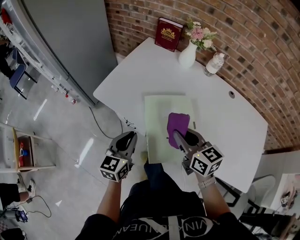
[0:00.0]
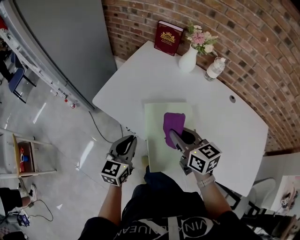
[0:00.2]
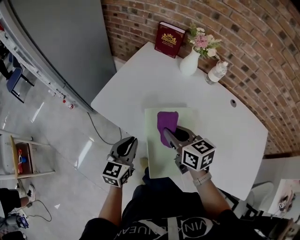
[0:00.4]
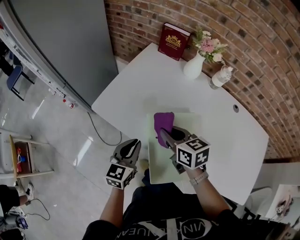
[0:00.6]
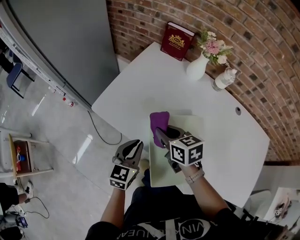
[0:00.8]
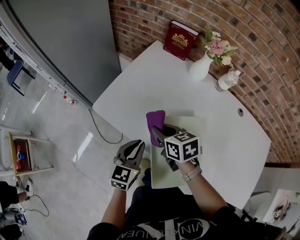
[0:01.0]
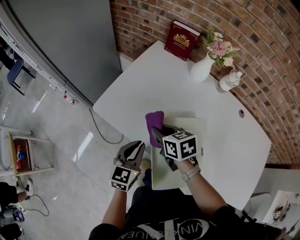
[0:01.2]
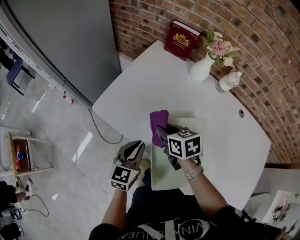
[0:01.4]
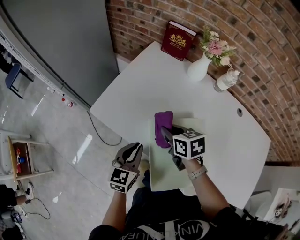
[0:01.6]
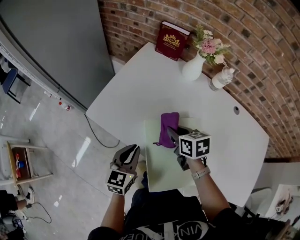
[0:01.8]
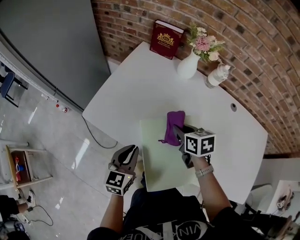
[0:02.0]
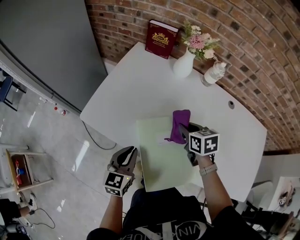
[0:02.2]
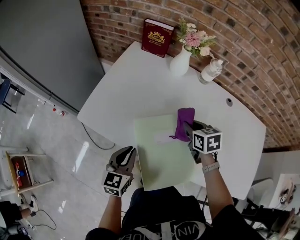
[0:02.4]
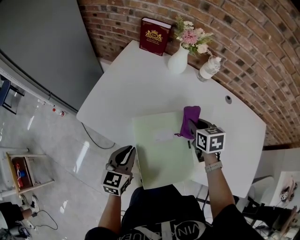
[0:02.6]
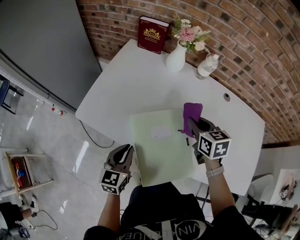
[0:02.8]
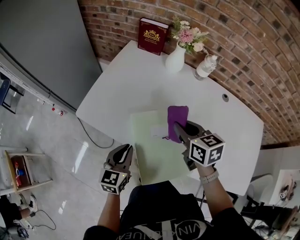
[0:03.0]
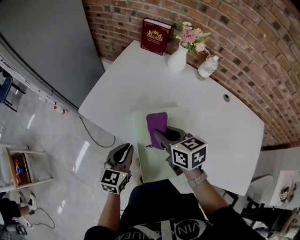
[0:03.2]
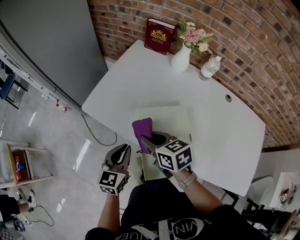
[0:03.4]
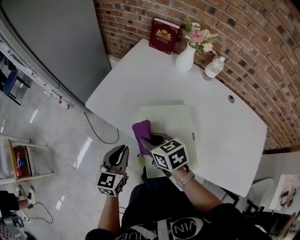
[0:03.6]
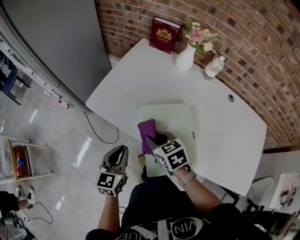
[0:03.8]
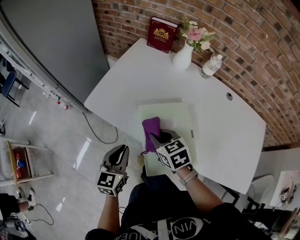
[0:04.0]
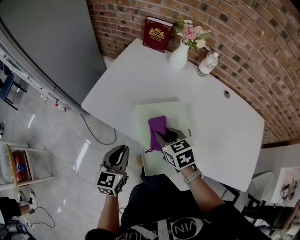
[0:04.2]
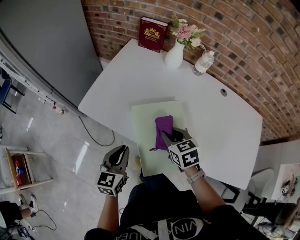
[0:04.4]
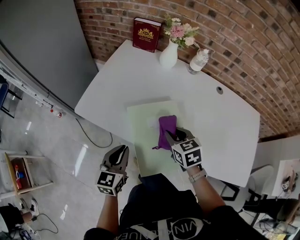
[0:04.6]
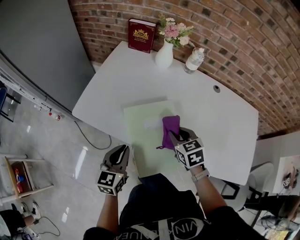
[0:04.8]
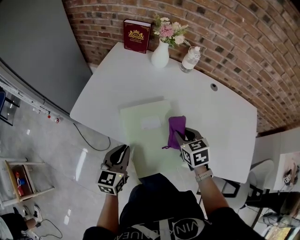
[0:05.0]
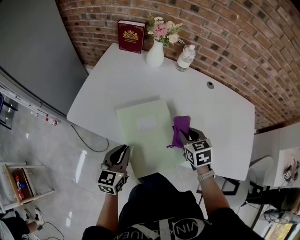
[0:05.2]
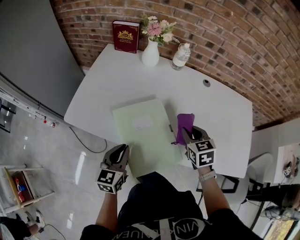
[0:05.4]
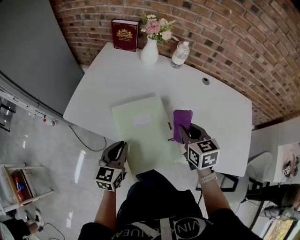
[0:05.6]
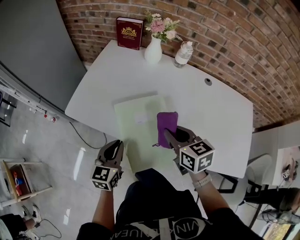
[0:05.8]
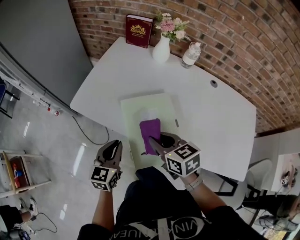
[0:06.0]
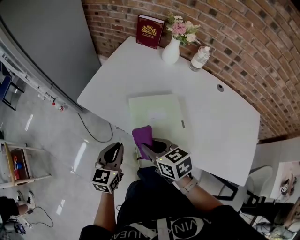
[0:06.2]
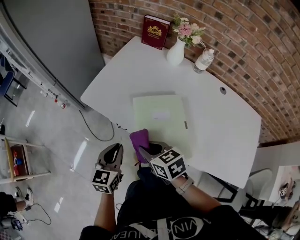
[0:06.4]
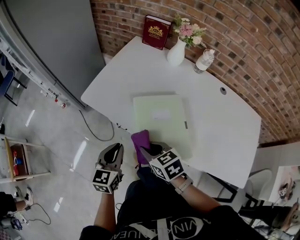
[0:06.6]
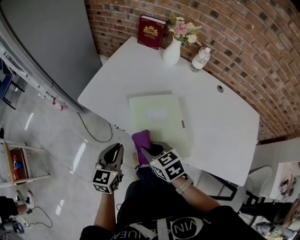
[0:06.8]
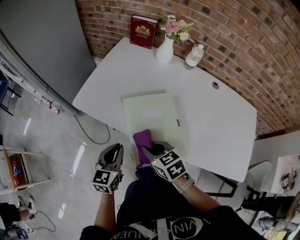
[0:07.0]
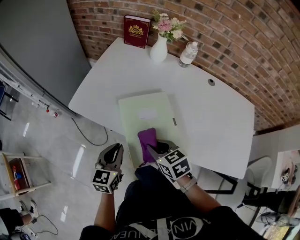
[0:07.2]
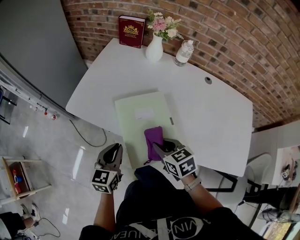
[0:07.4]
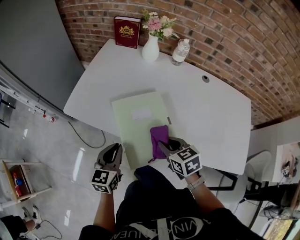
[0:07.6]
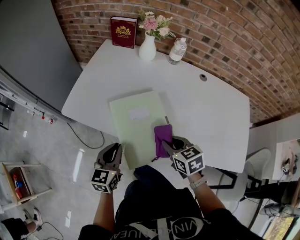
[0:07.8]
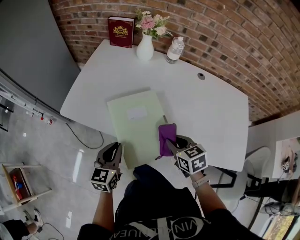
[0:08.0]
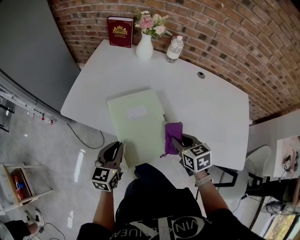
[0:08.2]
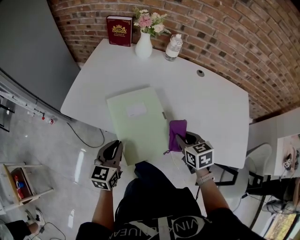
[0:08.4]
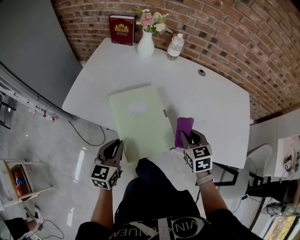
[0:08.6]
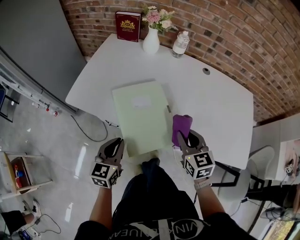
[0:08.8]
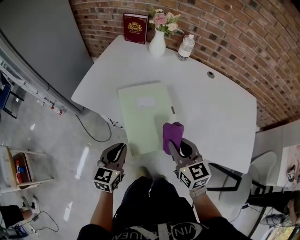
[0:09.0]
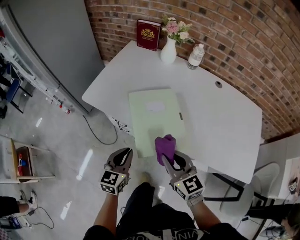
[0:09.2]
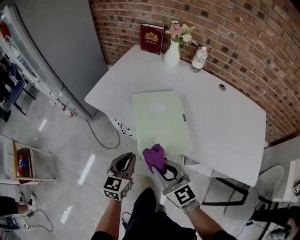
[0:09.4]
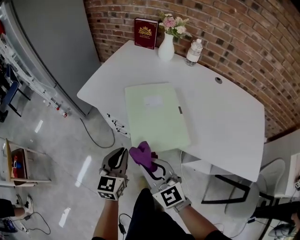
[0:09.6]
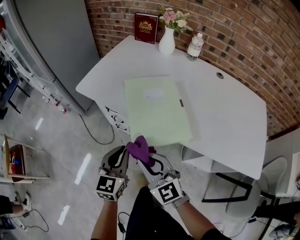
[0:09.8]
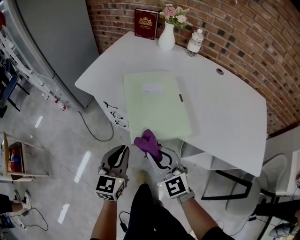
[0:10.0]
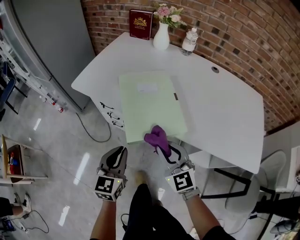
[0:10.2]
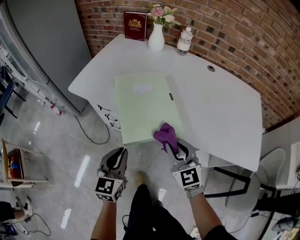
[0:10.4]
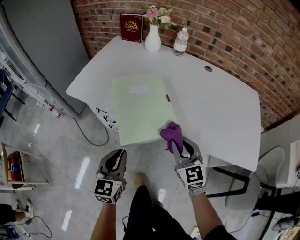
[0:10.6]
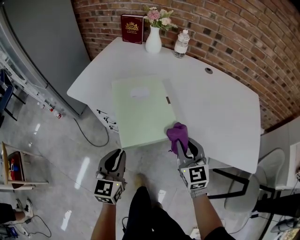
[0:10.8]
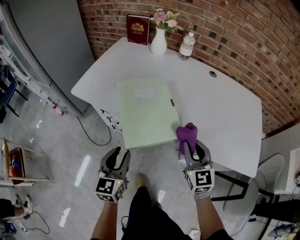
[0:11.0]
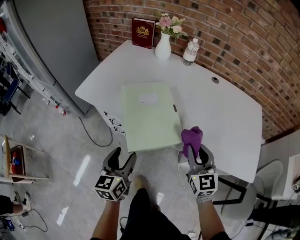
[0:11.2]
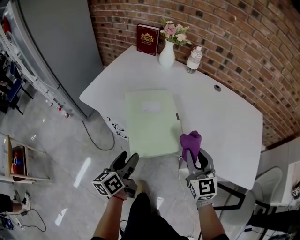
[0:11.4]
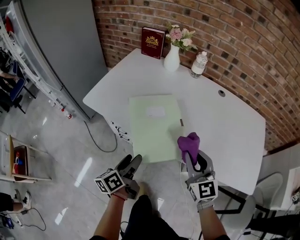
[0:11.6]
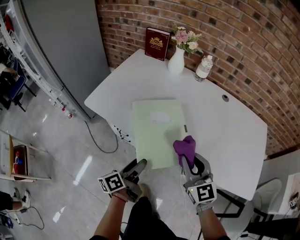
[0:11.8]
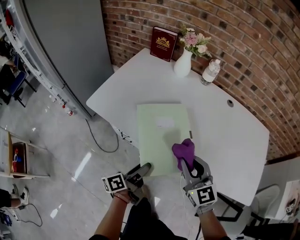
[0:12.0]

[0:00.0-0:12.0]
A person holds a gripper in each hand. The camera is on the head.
0:00.0 to 0:01.6: The left gripper heads forward, covering about 10 cm. The right gripper is displaced forward and downward by about 20 cm, and turns by about 30 degrees.
0:01.6 to 0:03.0: The right gripper shifts about 15 cm to the right and upward.
0:03.0 to 0:04.4: The left gripper ends up approximately 5 cm from where it was. Meanwhile the right gripper goes some 10 cm downward and backward, and travels to the left and back again, roughly 15 cm each way.
0:04.4 to 0:06.0: The right gripper moves backward and upward, roughly 10 cm, and travels to the right and back again, about 15 cm each way.
0:06.0 to 0:07.6: The right gripper travels to the right and downward by some 10 cm.
0:07.6 to 0:09.0: The left gripper shifts approximately 5 cm backward; the right gripper travels backward and upward by approximately 10 cm, goes to the right and returns, some 10 cm each way, and rotates roughly 20 degrees.
0:09.0 to 0:10.4: The left gripper moves backward, about 5 cm, while the right gripper moves downward, some 10 cm, and moves some 15 cm to the left and comes back.
0:10.4 to 0:12.0: The right gripper goes roughly 10 cm forward and upward, and moves approximately 10 cm to the right and comes back, while the left gripper moves forward, approximately 10 cm, rotates around the line of its fingers by approximately 70 degrees, counterclockwise from behind, and opens up.

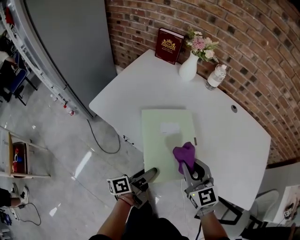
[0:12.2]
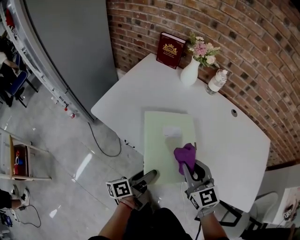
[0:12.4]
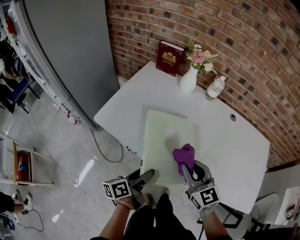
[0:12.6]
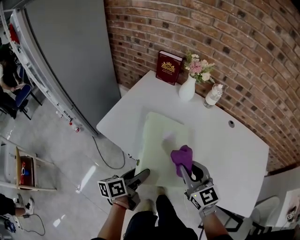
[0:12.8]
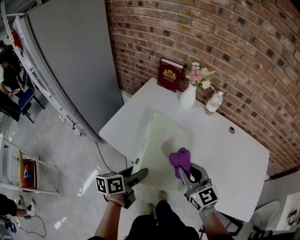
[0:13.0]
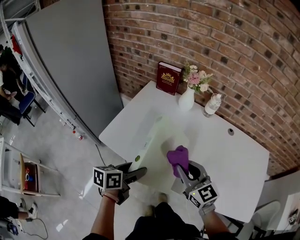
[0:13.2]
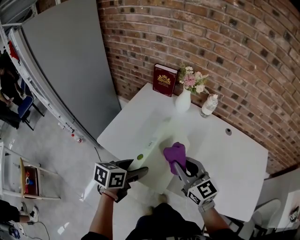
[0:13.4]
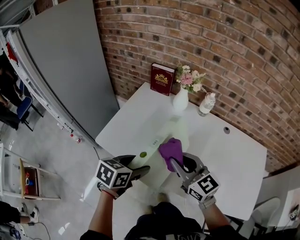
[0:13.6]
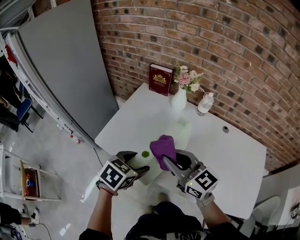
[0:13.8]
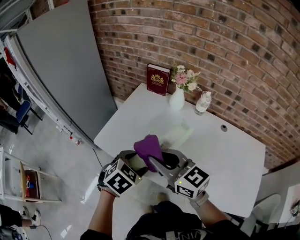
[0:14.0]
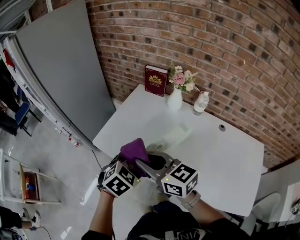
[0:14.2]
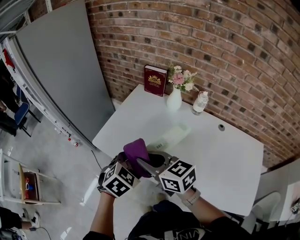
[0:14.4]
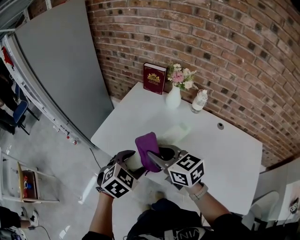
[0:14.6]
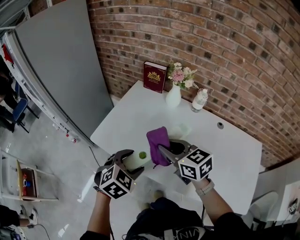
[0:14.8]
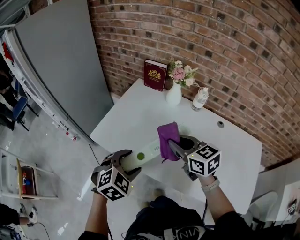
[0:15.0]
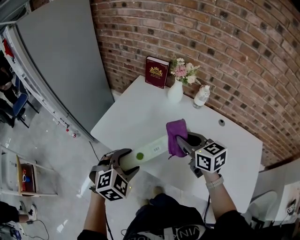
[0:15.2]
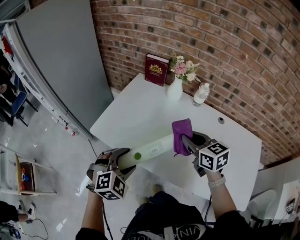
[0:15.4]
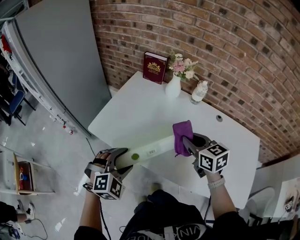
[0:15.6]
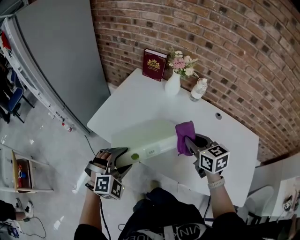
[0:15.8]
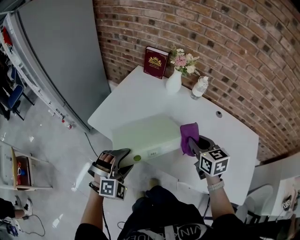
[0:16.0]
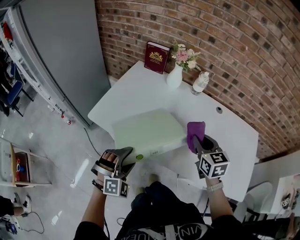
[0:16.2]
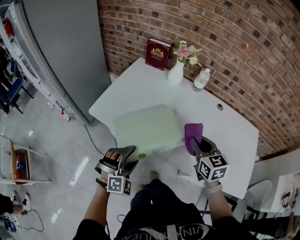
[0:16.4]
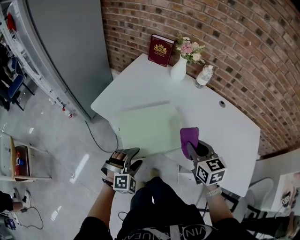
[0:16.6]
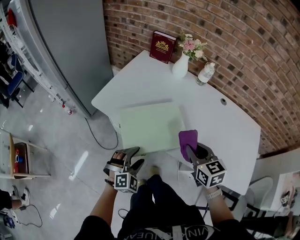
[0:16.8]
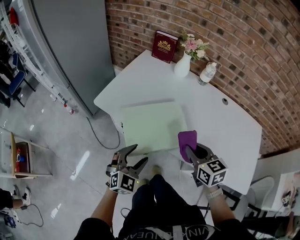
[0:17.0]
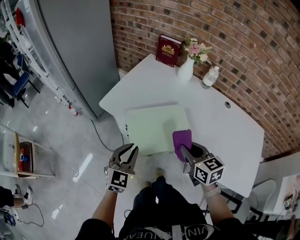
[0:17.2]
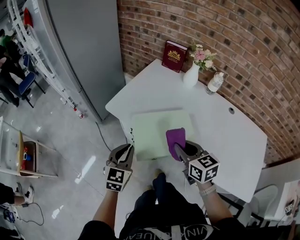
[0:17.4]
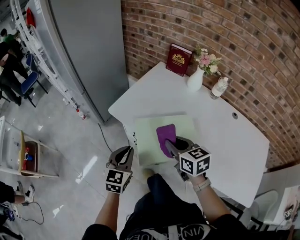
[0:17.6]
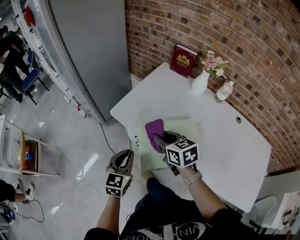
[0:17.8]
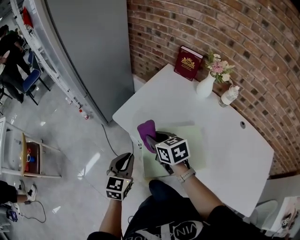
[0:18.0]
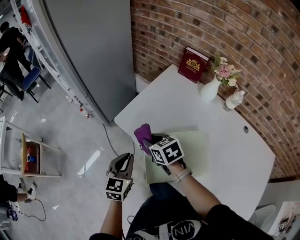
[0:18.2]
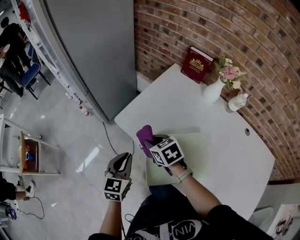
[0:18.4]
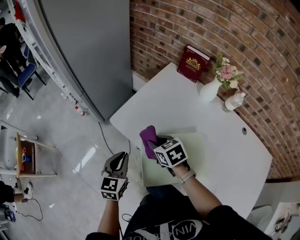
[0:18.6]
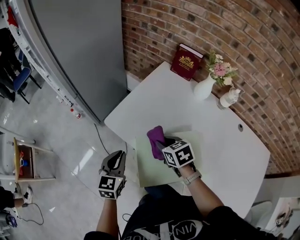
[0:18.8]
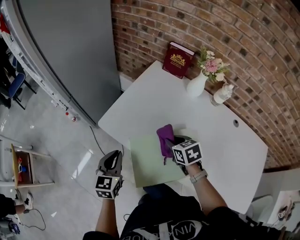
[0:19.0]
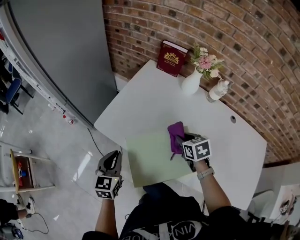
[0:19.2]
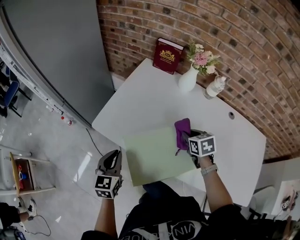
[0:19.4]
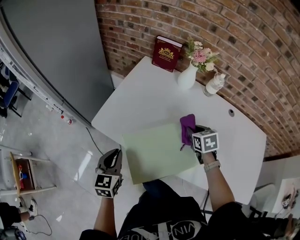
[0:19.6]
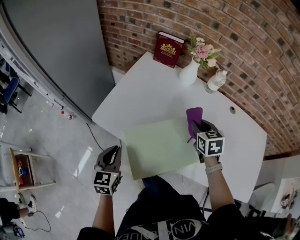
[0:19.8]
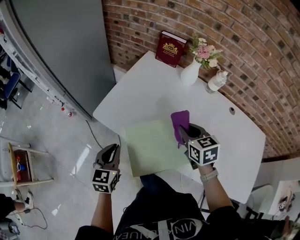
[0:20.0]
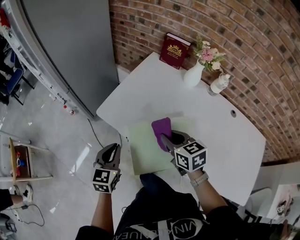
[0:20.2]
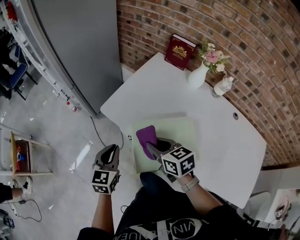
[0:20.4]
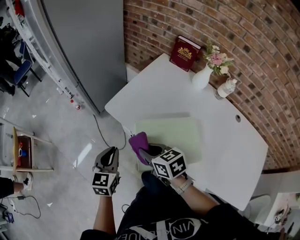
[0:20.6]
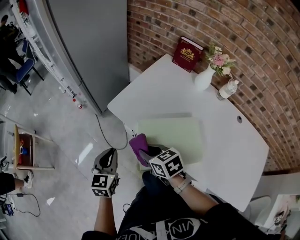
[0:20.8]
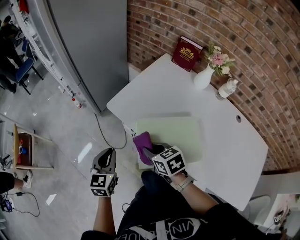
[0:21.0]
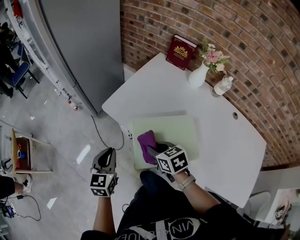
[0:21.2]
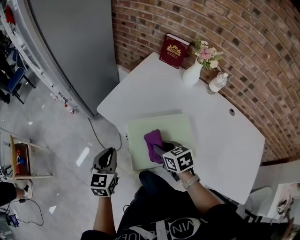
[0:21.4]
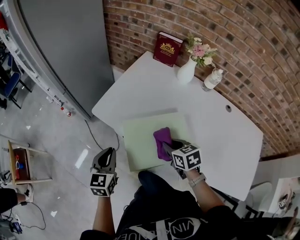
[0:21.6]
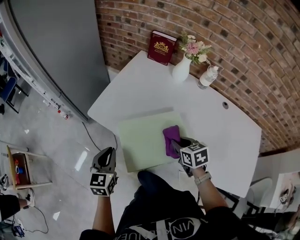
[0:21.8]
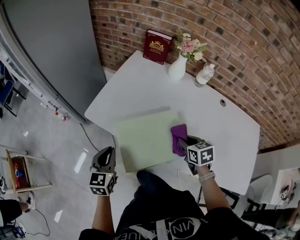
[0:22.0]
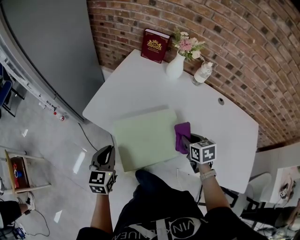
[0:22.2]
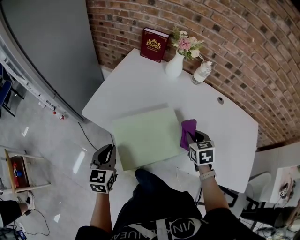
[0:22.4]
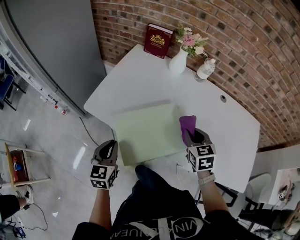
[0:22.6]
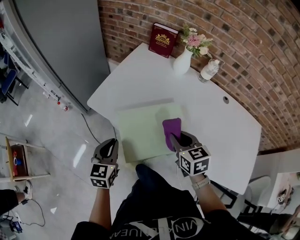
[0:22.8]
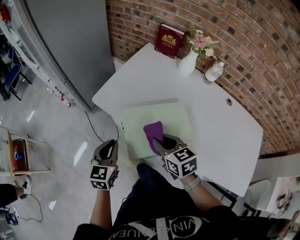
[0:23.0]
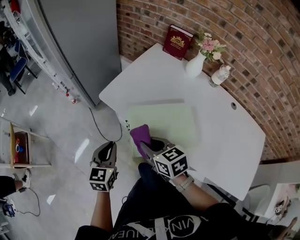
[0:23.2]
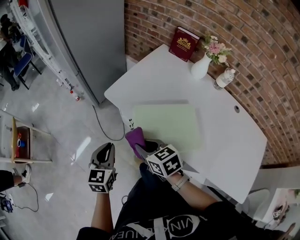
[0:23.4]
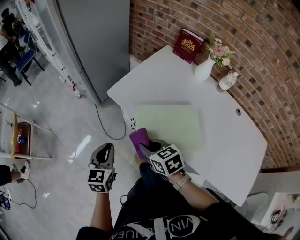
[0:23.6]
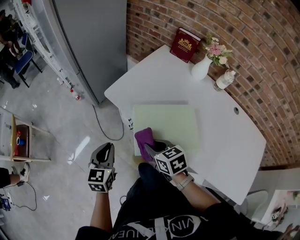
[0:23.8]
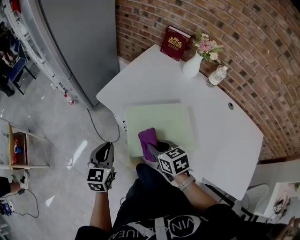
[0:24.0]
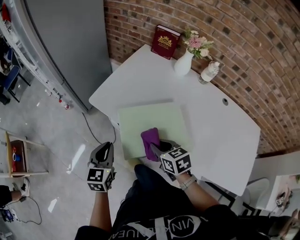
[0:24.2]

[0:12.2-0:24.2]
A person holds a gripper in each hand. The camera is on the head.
0:12.2 to 0:13.8: The left gripper goes approximately 20 cm upward and forward, and twists roughly 70 degrees clockwise, seen from behind. Meanwhile the right gripper heads upward, forward and to the left, covering approximately 20 cm, and turns by some 20 degrees.
0:13.8 to 0:15.2: The right gripper goes some 10 cm to the right, and changes its angle by some 20 degrees. The left gripper changes its angle by about 40 degrees.
0:15.2 to 0:16.6: The left gripper goes roughly 15 cm downward and backward, and changes its angle by approximately 20 degrees; the right gripper moves backward and downward, about 15 cm.
0:16.6 to 0:18.2: The right gripper moves roughly 35 cm, and turns by about 30 degrees; the left gripper ends up some 20 cm from where it was, rotates around the line of its fingers by approximately 70 degrees, counterclockwise from behind, and closes.
0:18.2 to 0:19.8: The right gripper changes place by some 30 cm, and rotates some 40 degrees.
0:19.8 to 0:21.2: The right gripper changes place by some 25 cm, and swivels approximately 30 degrees. Meanwhile the left gripper shifts by approximately 10 cm.
0:21.2 to 0:22.6: The right gripper shifts by some 25 cm, and turns by some 40 degrees. Meanwhile the left gripper changes place by roughly 10 cm.
0:22.6 to 0:24.2: The right gripper turns by roughly 30 degrees.
